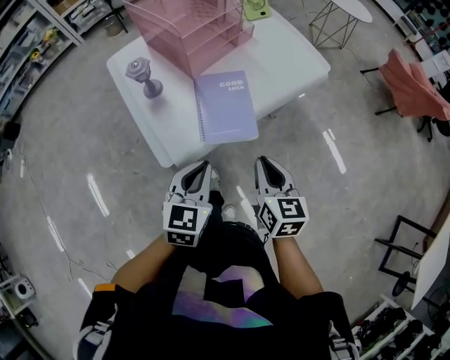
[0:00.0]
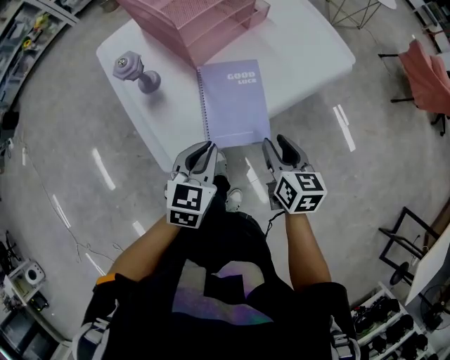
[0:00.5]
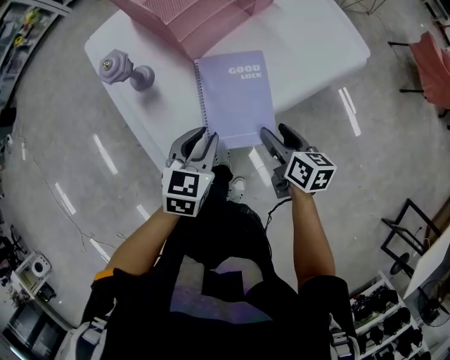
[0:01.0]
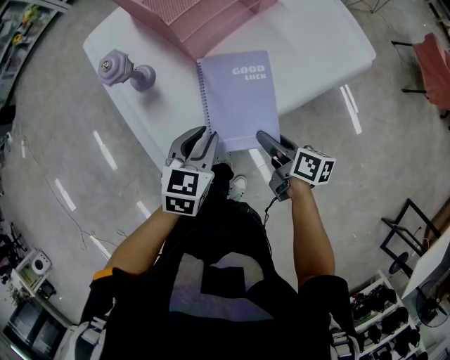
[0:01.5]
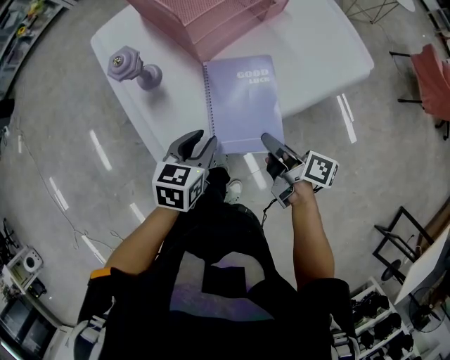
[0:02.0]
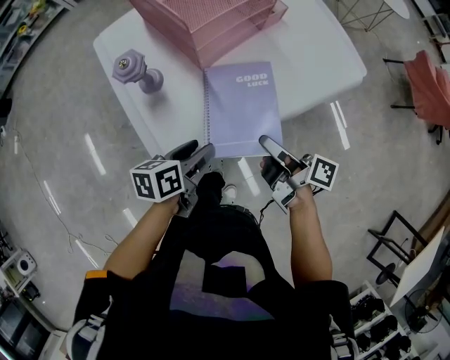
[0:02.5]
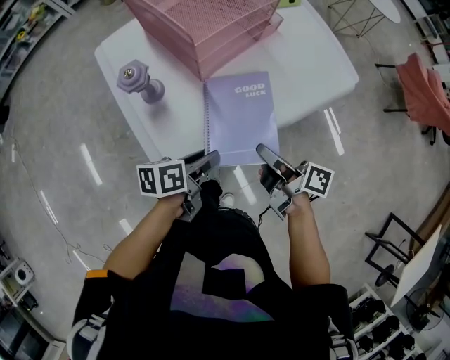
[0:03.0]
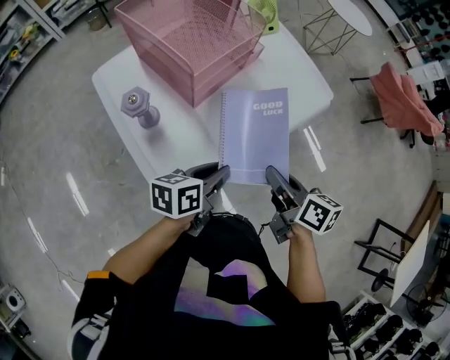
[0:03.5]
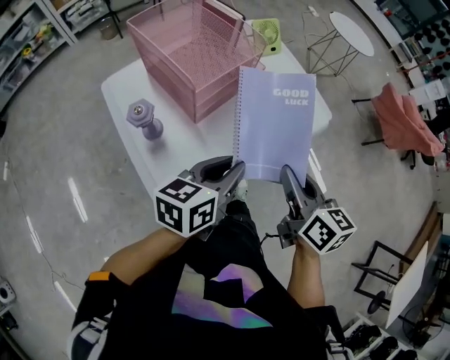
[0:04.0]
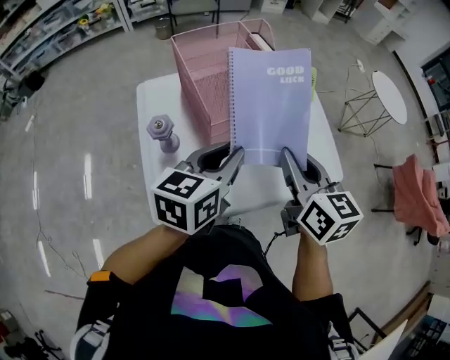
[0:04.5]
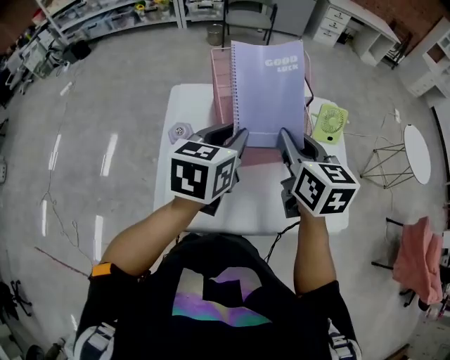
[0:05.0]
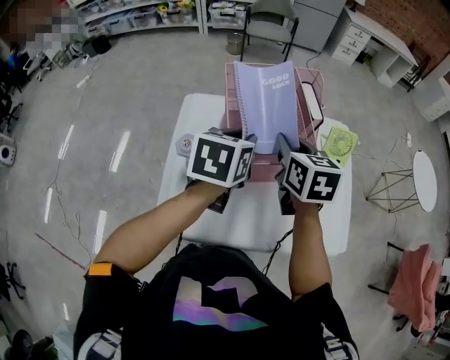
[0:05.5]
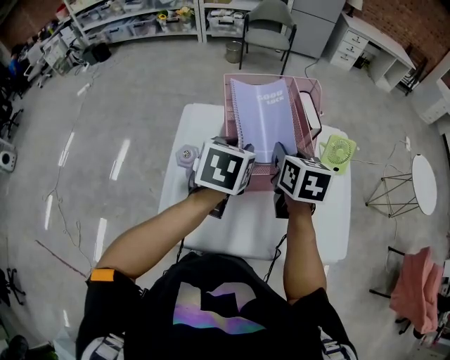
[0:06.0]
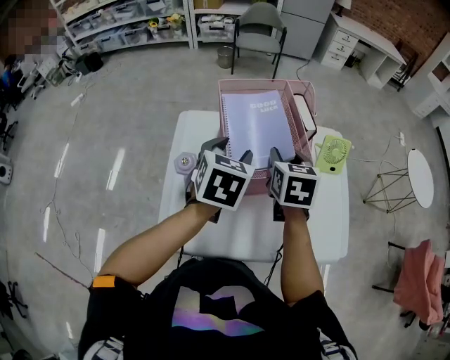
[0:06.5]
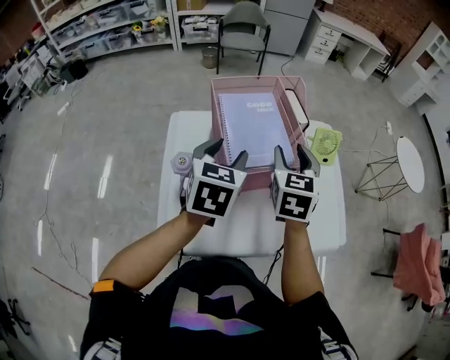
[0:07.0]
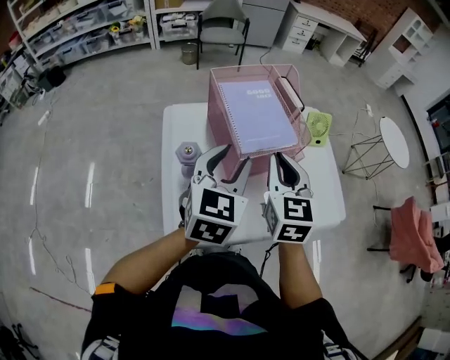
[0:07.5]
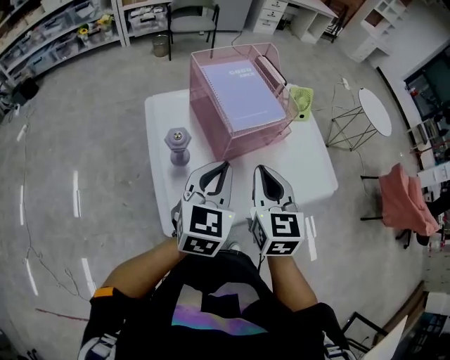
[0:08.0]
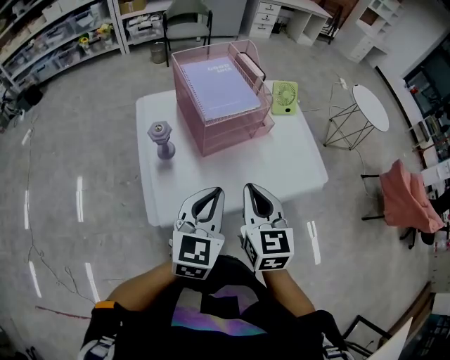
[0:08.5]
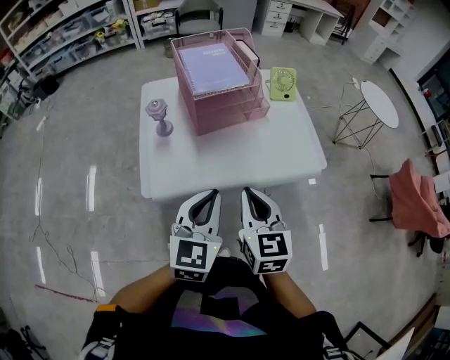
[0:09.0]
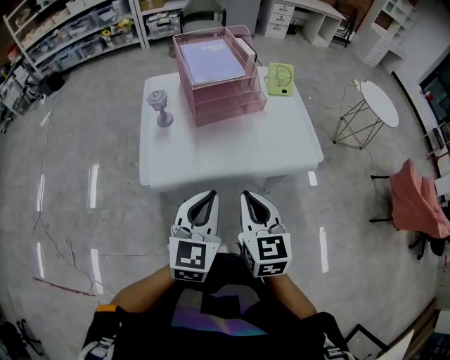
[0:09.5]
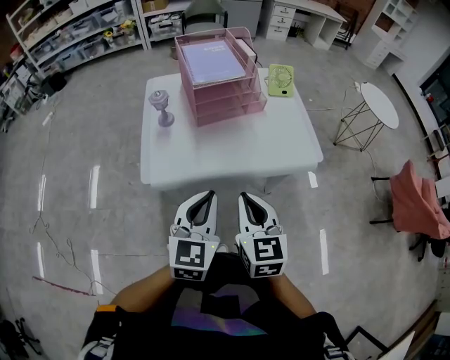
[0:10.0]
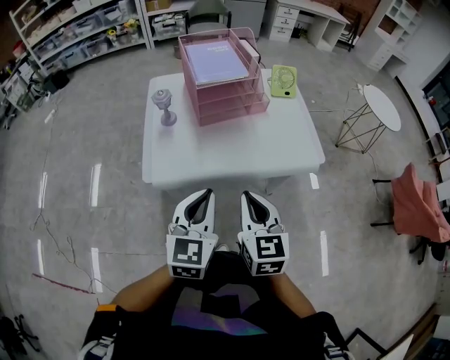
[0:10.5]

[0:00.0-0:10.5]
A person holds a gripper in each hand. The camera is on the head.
0:00.0 to 0:02.0: Both grippers move forward and downward, some 15 cm. The right gripper rotates around the line of its fingers by some 50 degrees, clockwise from behind, and opens, then closes again, while the left gripper rotates some 20 degrees, and opens up.
0:02.0 to 0:04.0: The right gripper is displaced upward by roughly 20 cm, and rotates around the line of its fingers by about 40 degrees, counterclockwise from behind, while the left gripper travels upward and to the right by about 20 cm, changes its angle by roughly 30 degrees, and opens, then closes once more.
0:04.0 to 0:06.5: The left gripper shifts by about 25 cm, changes its angle by about 60 degrees, and opens its fingers. The right gripper goes upward and returns, roughly 10 cm each way, and swivels roughly 40 degrees.
0:06.5 to 0:08.5: Both grippers move backward, about 30 cm. The right gripper closes its fingers; the left gripper rotates about 30 degrees, and closes its fingers.
0:08.5 to 0:10.5: The left gripper heads backward, covering about 15 cm. The right gripper moves backward and to the right, approximately 15 cm.

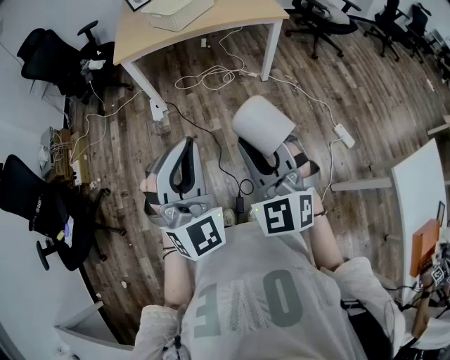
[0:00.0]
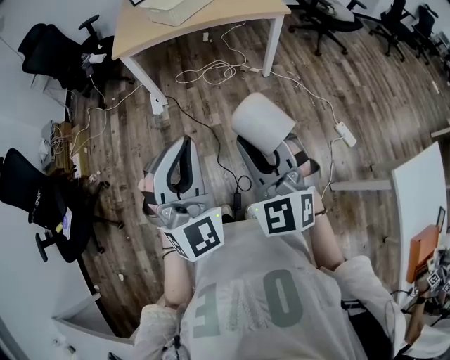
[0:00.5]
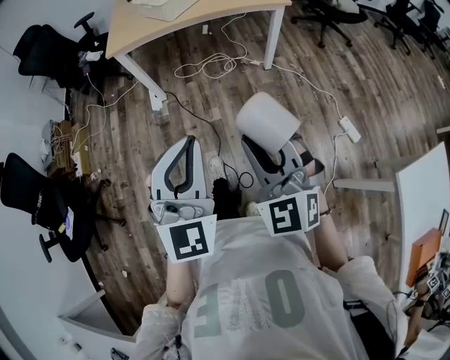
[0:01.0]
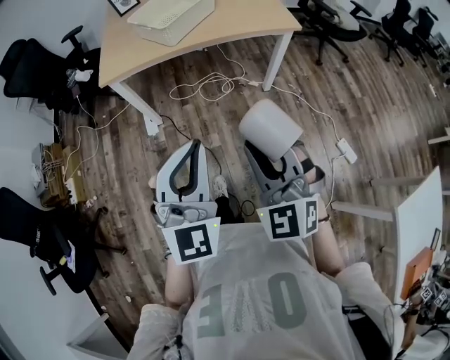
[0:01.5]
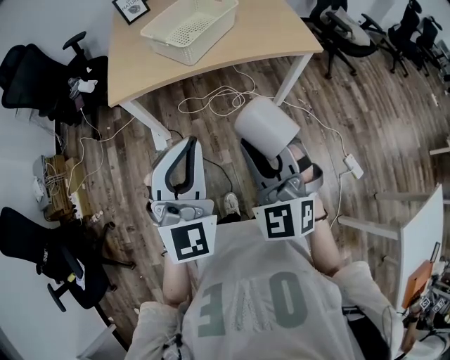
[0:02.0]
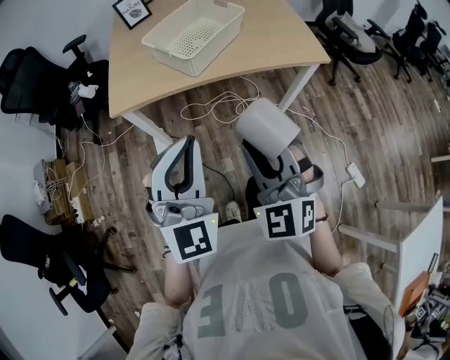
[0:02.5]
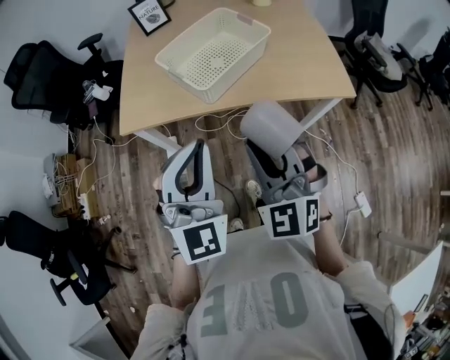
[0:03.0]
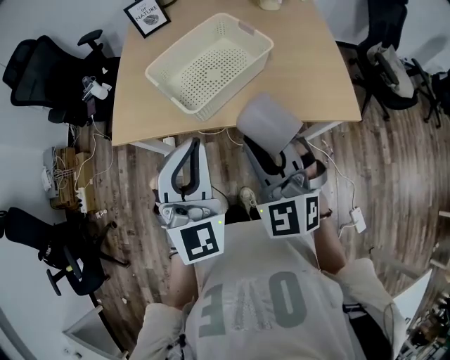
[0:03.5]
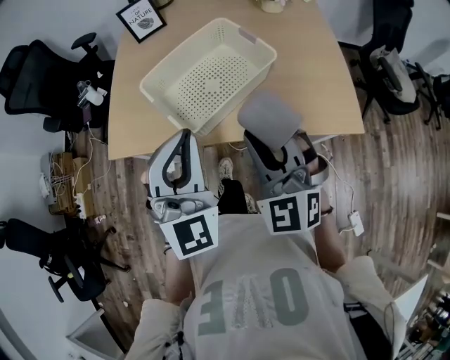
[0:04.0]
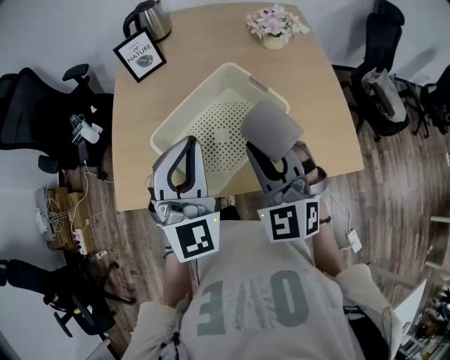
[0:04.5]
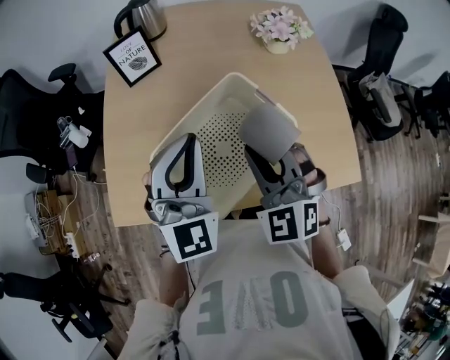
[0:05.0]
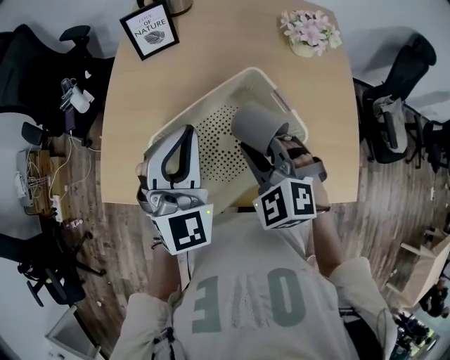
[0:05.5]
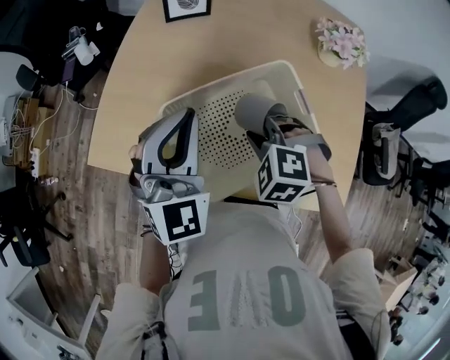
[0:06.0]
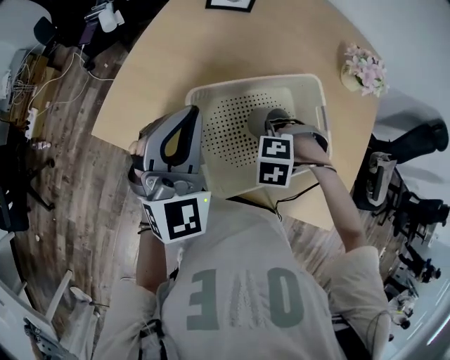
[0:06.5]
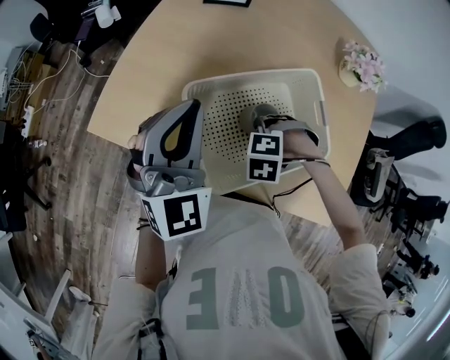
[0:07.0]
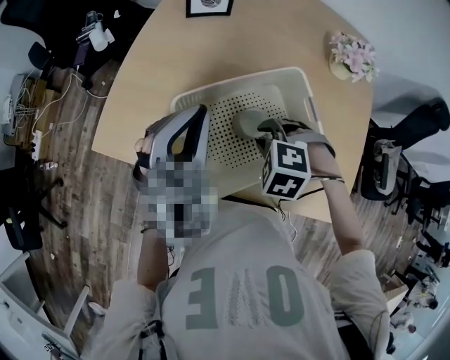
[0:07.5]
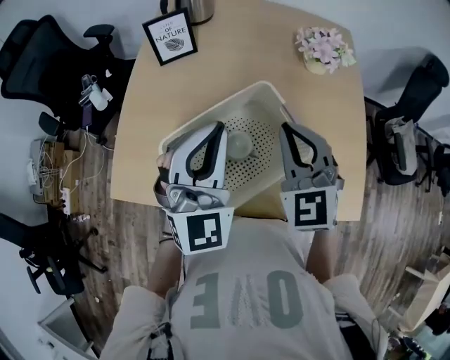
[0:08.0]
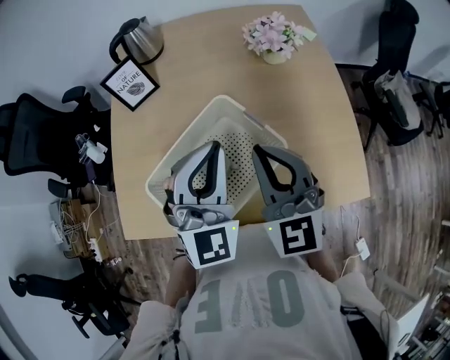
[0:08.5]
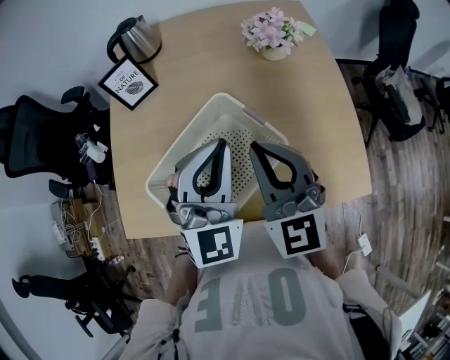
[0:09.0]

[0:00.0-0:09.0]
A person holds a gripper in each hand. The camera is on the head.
0:00.0 to 0:02.0: Both grippers travel together forward, roughly 35 cm.
0:02.0 to 0:04.5: Both grippers are carried forward, approximately 50 cm.
0:04.5 to 0:07.0: The right gripper goes some 25 cm downward, and tips its fingers downward by approximately 60 degrees. The left gripper ends up approximately 15 cm from where it was, and turns by about 20 degrees.
0:07.0 to 0:09.0: The left gripper moves about 25 cm, and changes its angle by some 30 degrees. The right gripper heads upward, covering approximately 30 cm, and tips its fingers upward by approximately 70 degrees.

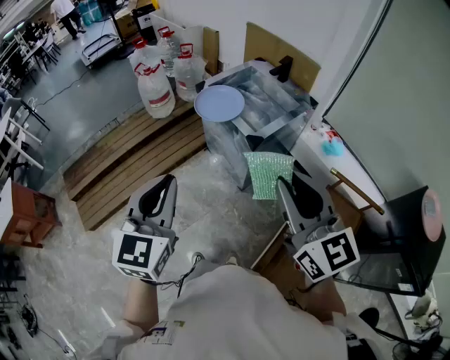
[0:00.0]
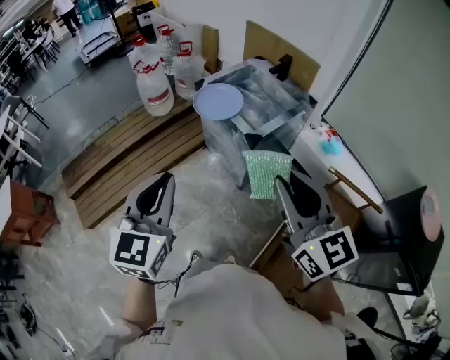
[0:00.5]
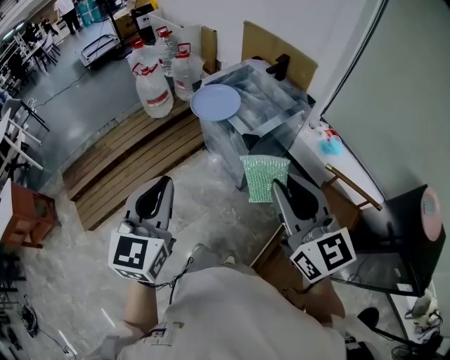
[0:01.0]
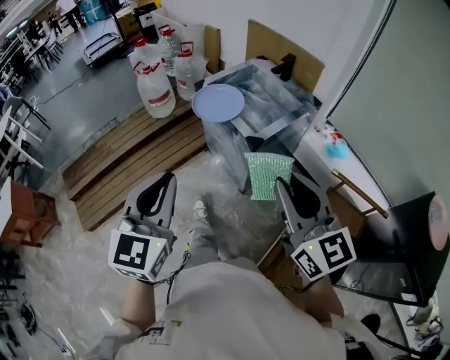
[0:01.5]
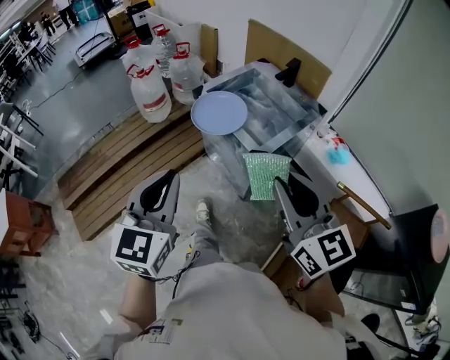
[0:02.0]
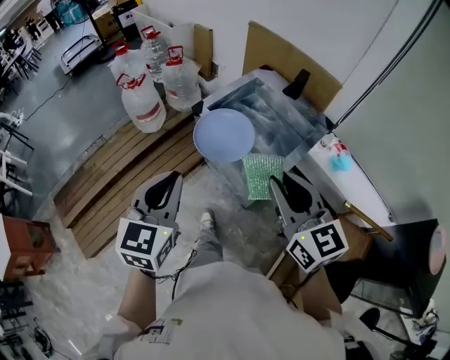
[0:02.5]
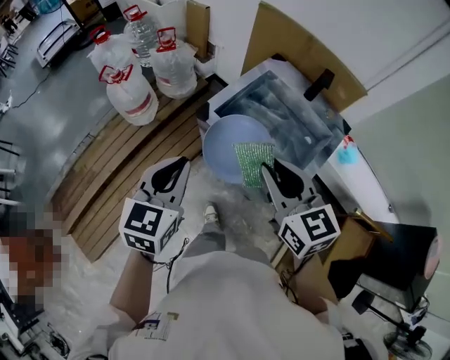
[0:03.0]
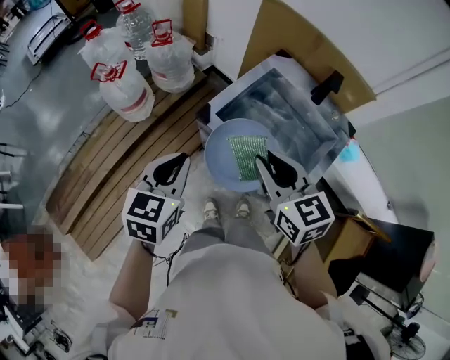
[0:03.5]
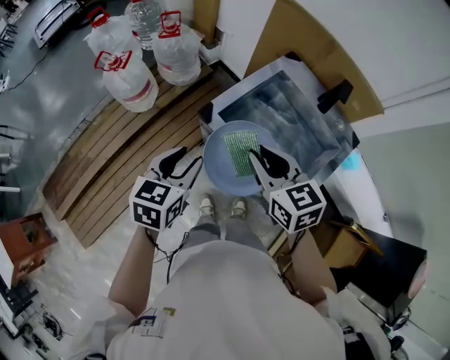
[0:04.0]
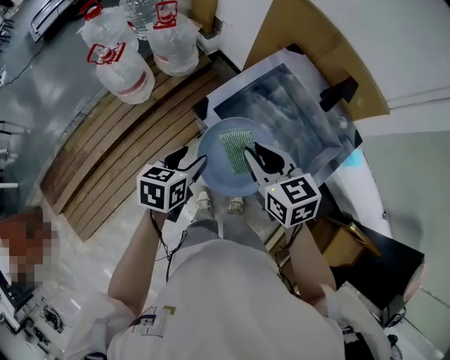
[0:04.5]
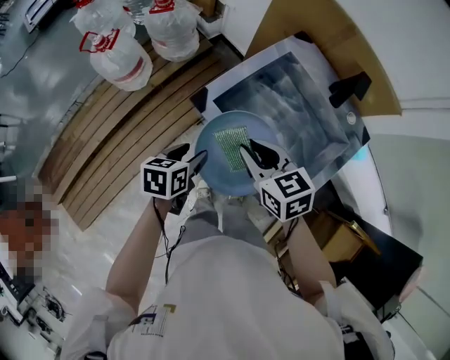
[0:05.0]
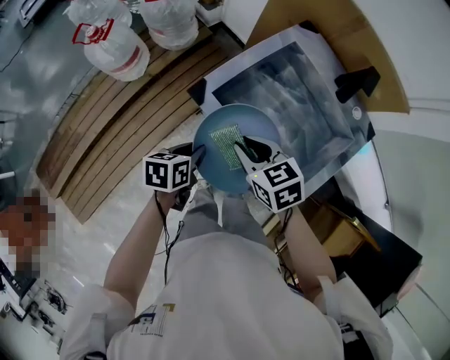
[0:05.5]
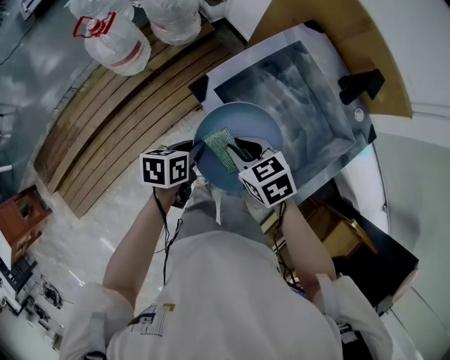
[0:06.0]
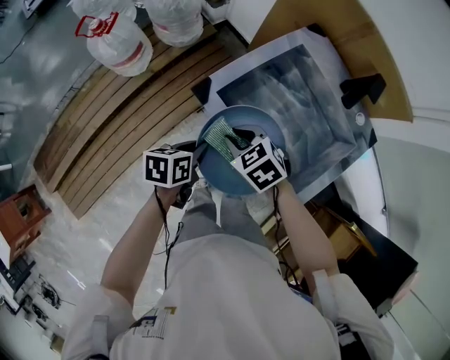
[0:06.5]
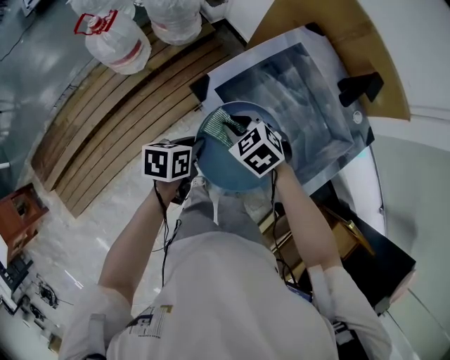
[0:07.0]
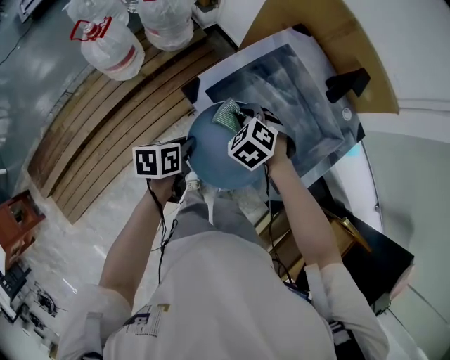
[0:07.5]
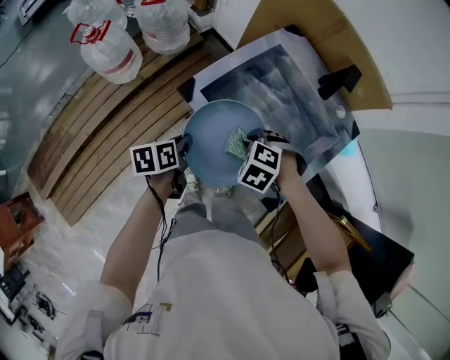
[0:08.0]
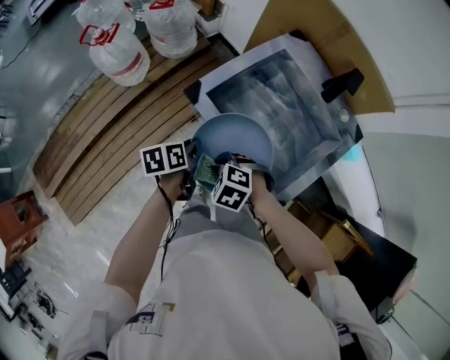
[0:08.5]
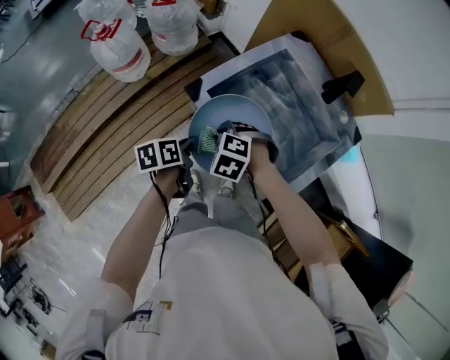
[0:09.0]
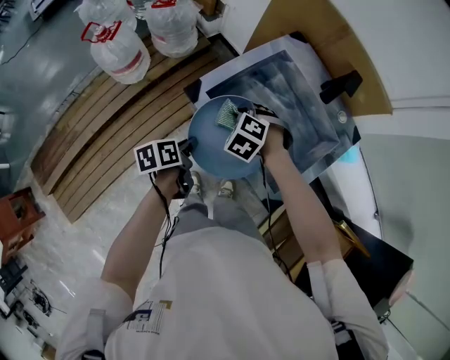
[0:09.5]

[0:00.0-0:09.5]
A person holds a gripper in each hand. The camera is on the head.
0:00.0 to 0:02.0: The right gripper goes about 15 cm forward and downward. Meanwhile the left gripper goes approximately 15 cm forward.
0:02.0 to 0:04.0: The pair of grippers is taken forward, some 40 cm. The right gripper swivels about 30 degrees; the left gripper moves downward, some 20 cm, turns by roughly 30 degrees, and opens.
0:04.0 to 0:05.5: The two grippers go approximately 15 cm downward. The right gripper rotates approximately 20 degrees; the left gripper swivels about 30 degrees.
0:05.5 to 0:07.5: The right gripper moves forward and downward, approximately 10 cm, and rotates about 50 degrees.
